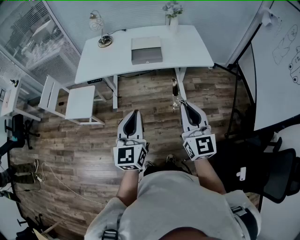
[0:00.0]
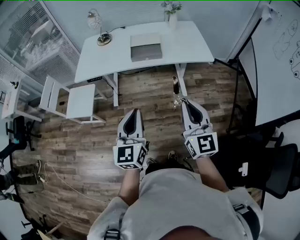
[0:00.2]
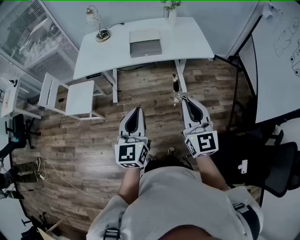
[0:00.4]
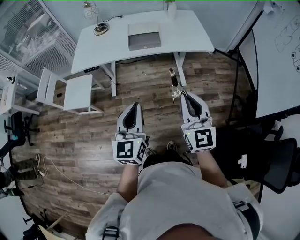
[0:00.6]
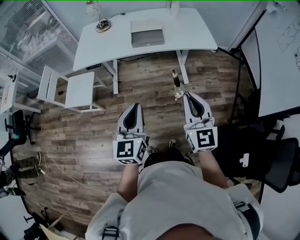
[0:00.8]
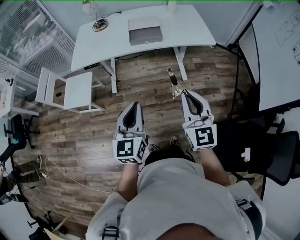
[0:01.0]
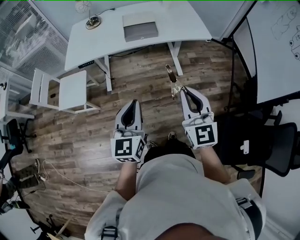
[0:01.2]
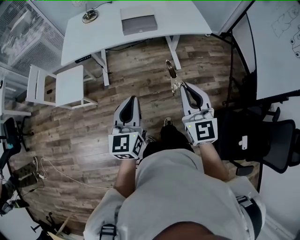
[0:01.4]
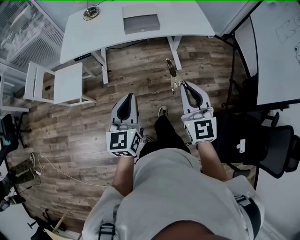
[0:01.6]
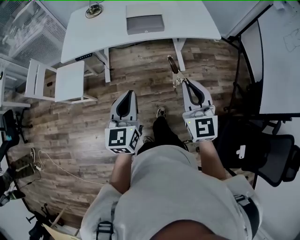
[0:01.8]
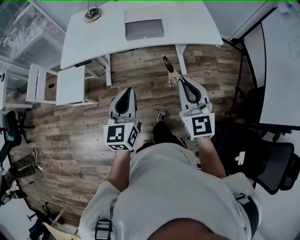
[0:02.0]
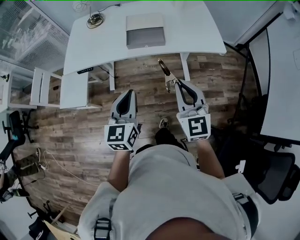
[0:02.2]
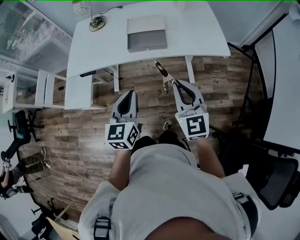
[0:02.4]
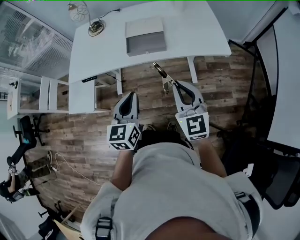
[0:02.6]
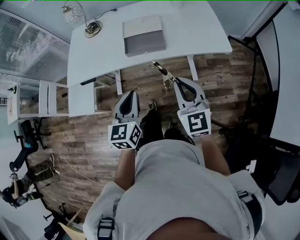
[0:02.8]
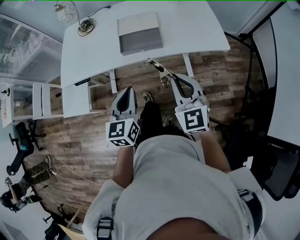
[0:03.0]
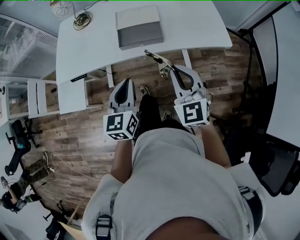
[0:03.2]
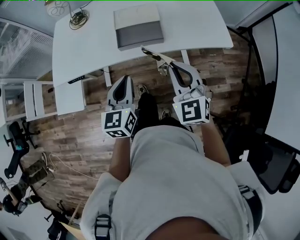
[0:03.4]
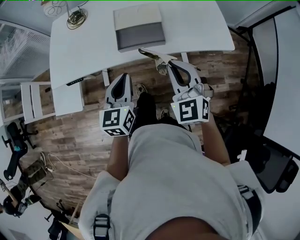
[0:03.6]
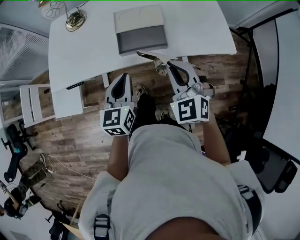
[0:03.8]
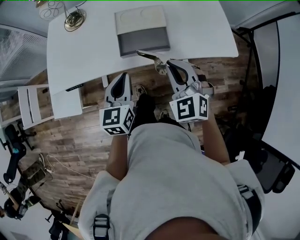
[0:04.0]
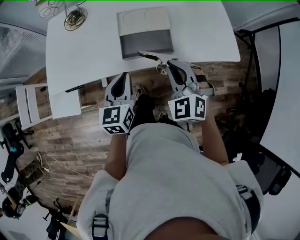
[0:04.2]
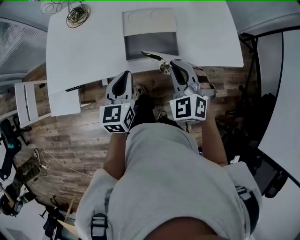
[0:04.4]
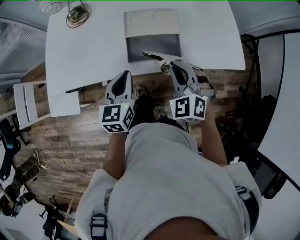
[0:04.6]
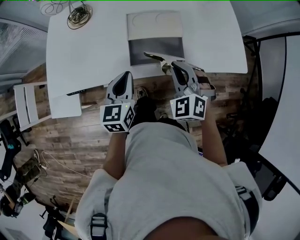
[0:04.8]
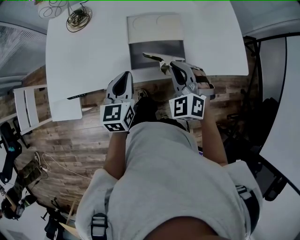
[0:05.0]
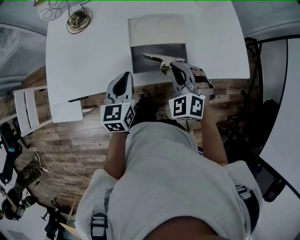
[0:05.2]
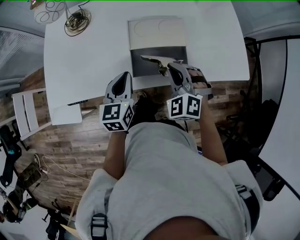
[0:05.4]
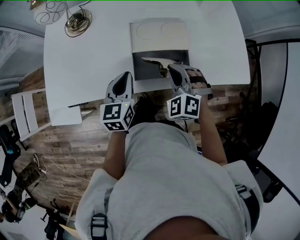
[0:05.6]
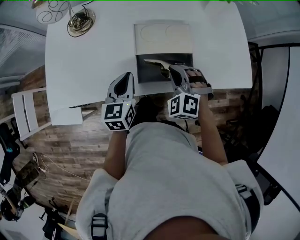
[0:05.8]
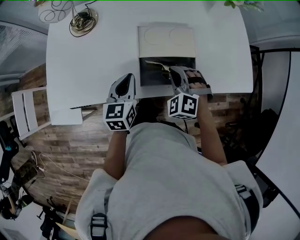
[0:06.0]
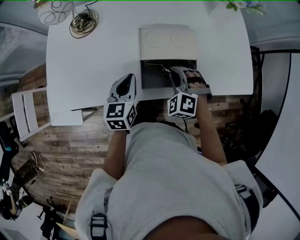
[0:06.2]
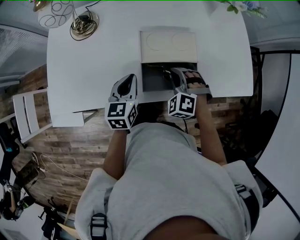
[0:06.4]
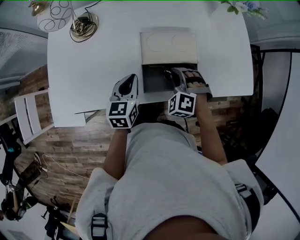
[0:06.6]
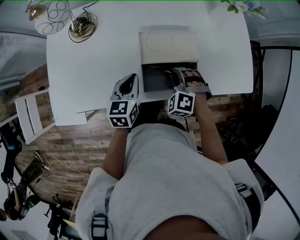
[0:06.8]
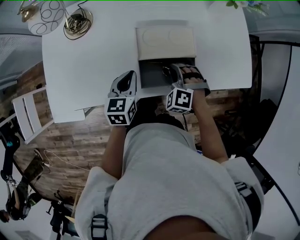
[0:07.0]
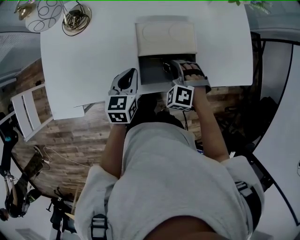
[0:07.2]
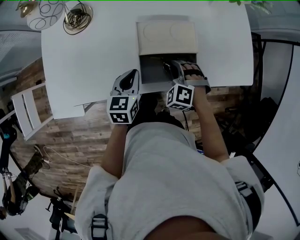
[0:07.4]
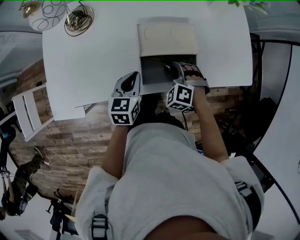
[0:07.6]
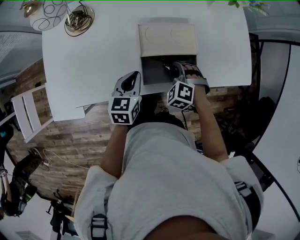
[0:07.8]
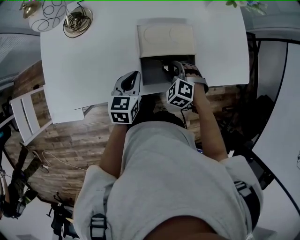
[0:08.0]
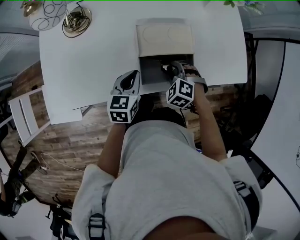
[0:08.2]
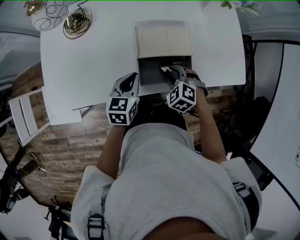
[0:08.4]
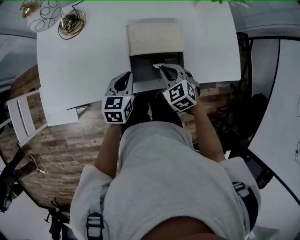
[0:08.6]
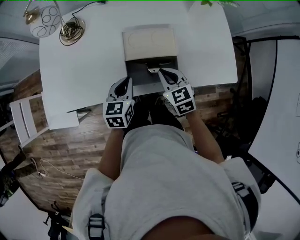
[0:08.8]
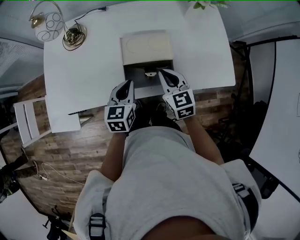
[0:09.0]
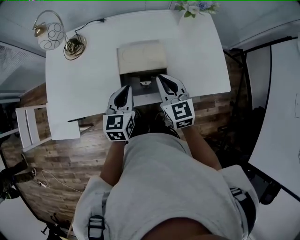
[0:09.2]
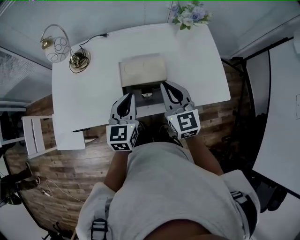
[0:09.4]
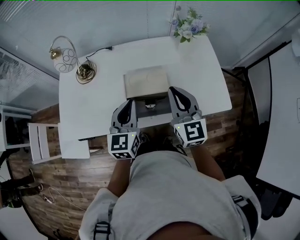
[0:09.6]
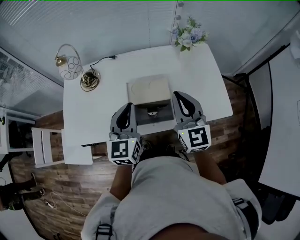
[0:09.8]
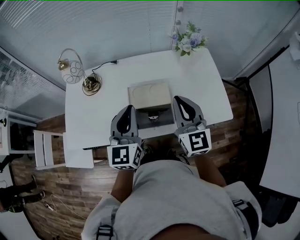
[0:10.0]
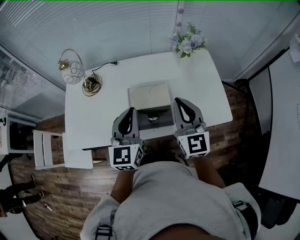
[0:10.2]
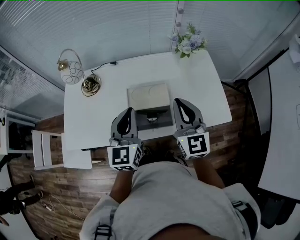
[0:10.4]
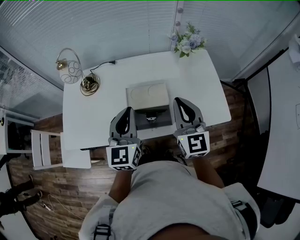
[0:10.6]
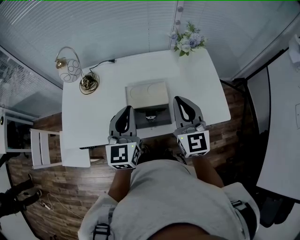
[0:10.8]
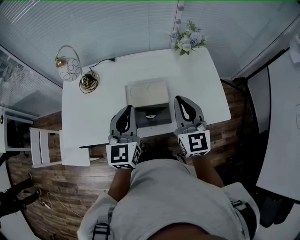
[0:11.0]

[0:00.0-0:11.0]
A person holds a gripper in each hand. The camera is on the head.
0.0 to 1.6 s: The left gripper heads downward and to the left, covering roughly 10 cm. The right gripper shifts about 10 cm to the left and downward.
1.6 to 3.2 s: Both grippers travel together forward, approximately 30 cm.
3.2 to 4.8 s: The left gripper moves forward and downward, about 20 cm; the right gripper goes about 20 cm forward, downward and to the left, and turns by about 30 degrees.
4.8 to 6.2 s: The right gripper goes about 15 cm forward, downward and to the left; the left gripper travels forward and downward by roughly 10 cm.
6.2 to 7.8 s: There are only small adjustments of the grippers.
7.8 to 9.4 s: The left gripper shifts approximately 15 cm upward and to the right, and turns by roughly 20 degrees. The right gripper moves upward, some 25 cm, points its fingers approximately 50 degrees further upward, and opens, then closes again.
9.4 to 11.0 s: Both grippers move upward, roughly 10 cm.

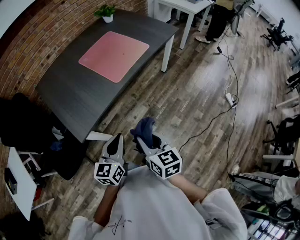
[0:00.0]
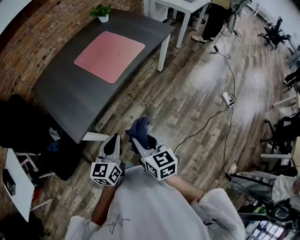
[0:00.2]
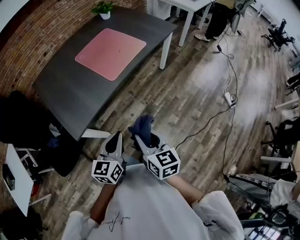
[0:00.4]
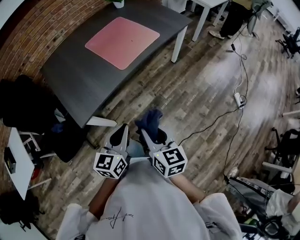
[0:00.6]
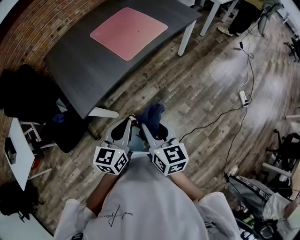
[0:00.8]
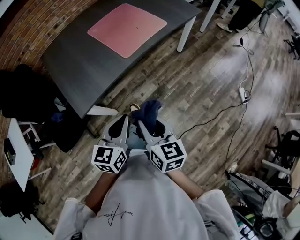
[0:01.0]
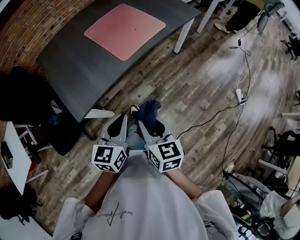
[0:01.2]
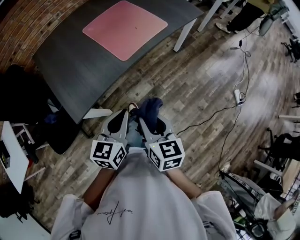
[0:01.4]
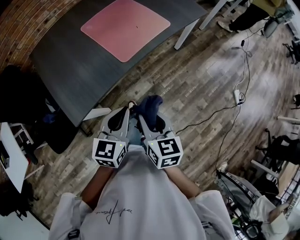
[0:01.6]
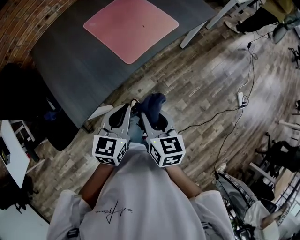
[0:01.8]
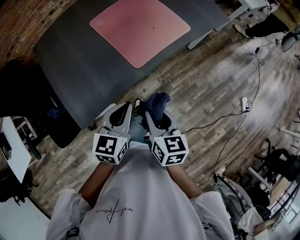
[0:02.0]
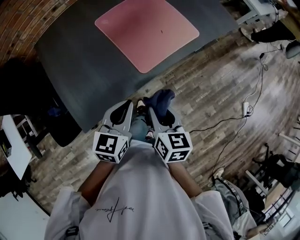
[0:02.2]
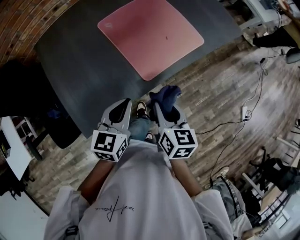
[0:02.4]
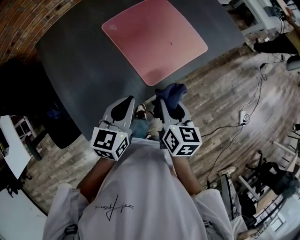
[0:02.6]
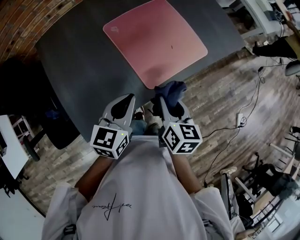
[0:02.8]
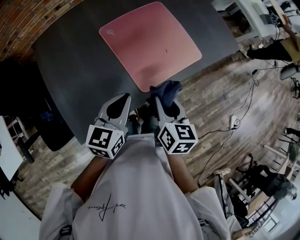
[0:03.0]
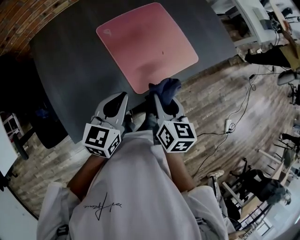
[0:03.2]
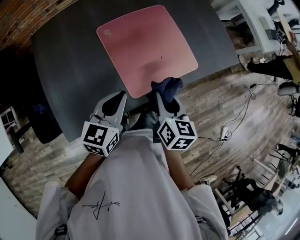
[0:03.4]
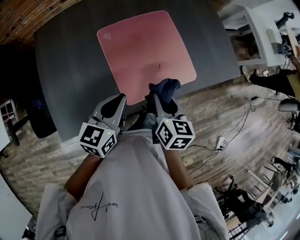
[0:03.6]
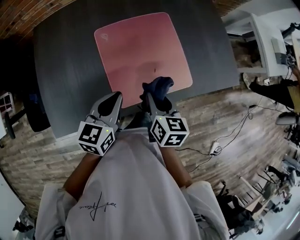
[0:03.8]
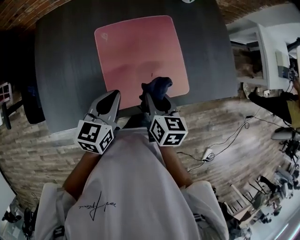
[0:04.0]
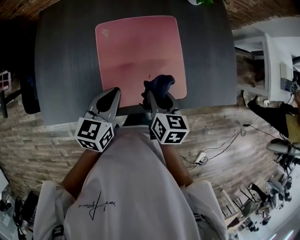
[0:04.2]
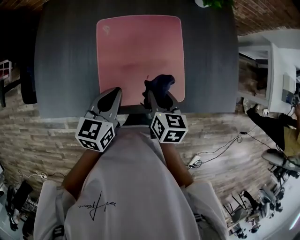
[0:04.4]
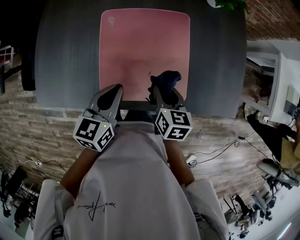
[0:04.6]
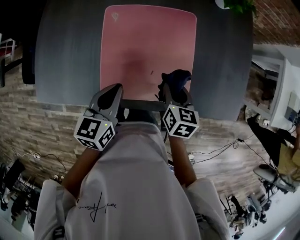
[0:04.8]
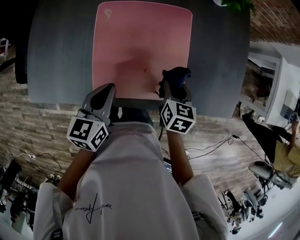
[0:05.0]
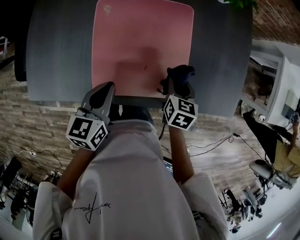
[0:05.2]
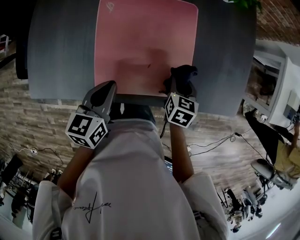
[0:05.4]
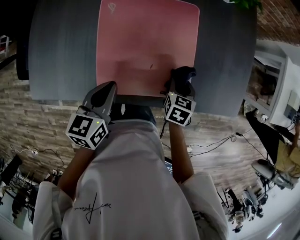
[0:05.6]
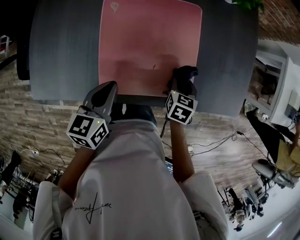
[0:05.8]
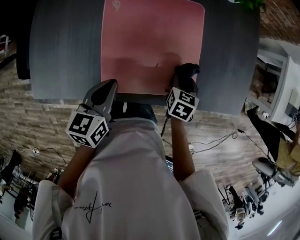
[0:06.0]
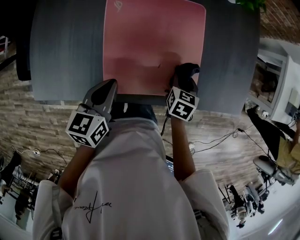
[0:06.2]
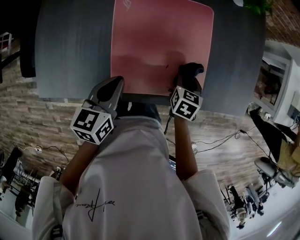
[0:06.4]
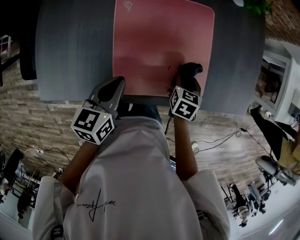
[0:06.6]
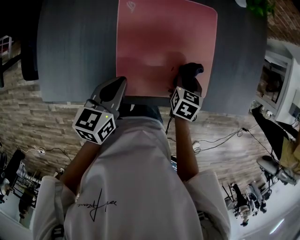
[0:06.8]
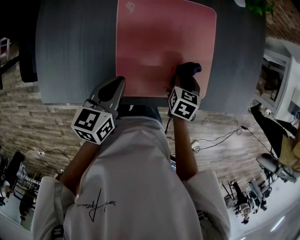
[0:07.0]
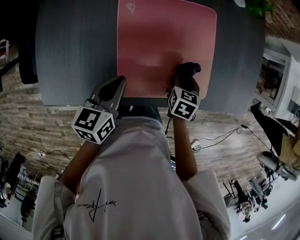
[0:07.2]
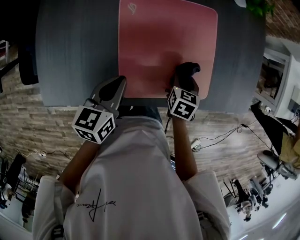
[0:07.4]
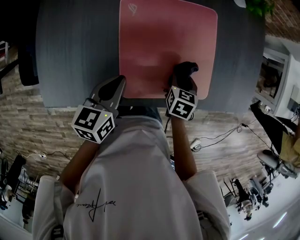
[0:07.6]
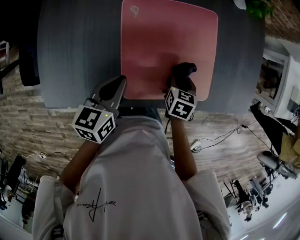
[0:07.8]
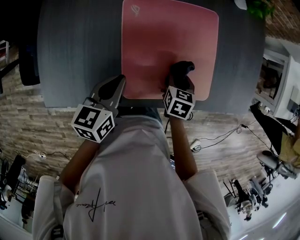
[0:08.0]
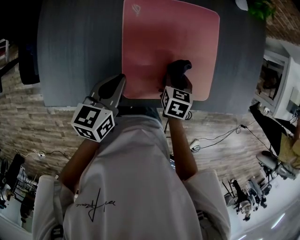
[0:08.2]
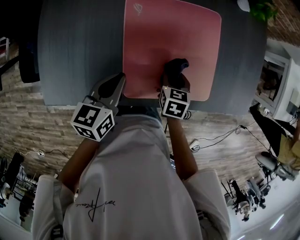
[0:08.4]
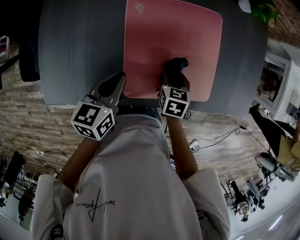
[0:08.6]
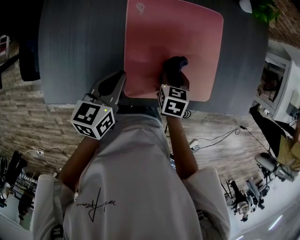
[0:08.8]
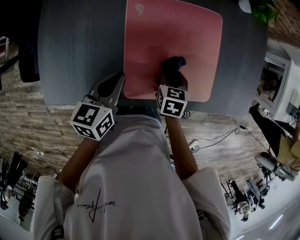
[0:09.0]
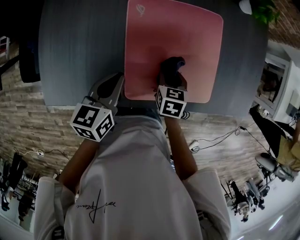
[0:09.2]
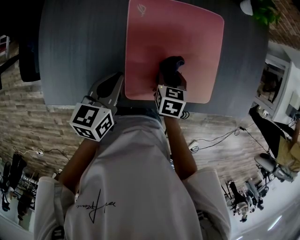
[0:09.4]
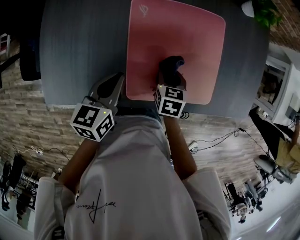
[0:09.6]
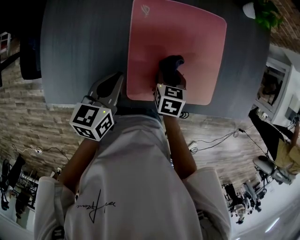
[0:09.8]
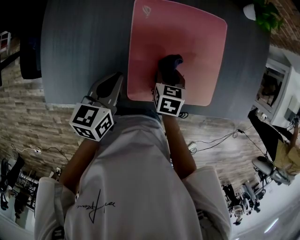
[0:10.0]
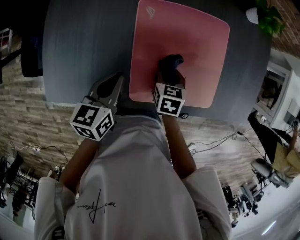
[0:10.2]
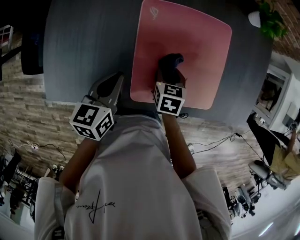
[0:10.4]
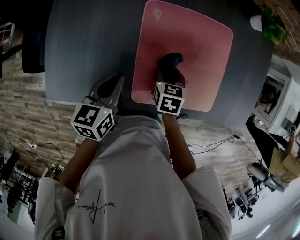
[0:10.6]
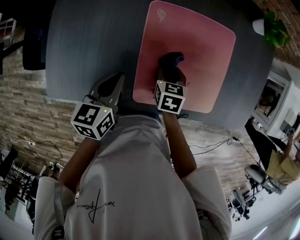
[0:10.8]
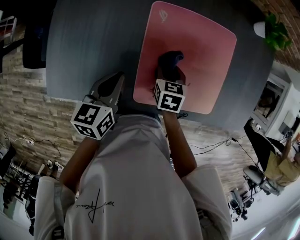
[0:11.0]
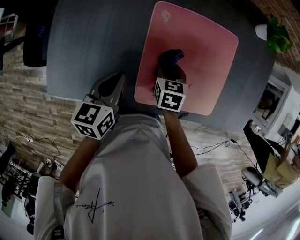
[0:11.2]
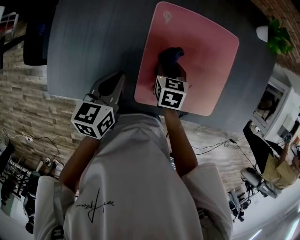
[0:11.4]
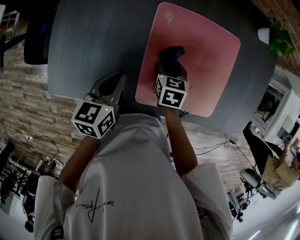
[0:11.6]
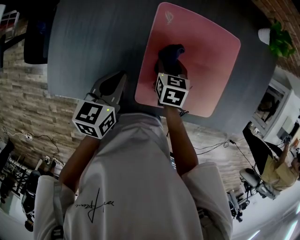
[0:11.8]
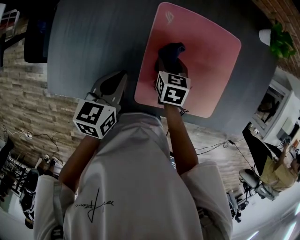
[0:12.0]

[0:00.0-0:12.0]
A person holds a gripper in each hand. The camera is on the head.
0.0 to 1.6 s: Both grippers move forward, roughly 10 cm.
1.6 to 3.0 s: The left gripper heads forward and to the left, covering roughly 25 cm, while the right gripper heads forward, covering roughly 25 cm.
3.0 to 4.4 s: The right gripper shifts by some 25 cm, and swivels roughly 30 degrees. Meanwhile the left gripper shifts by roughly 20 cm, and turns by about 30 degrees.
4.4 to 6.0 s: The left gripper ends up approximately 5 cm from where it was. Meanwhile the right gripper moves downward and to the right, about 15 cm, and changes its angle by about 20 degrees.
6.0 to 7.6 s: The two grippers go roughly 10 cm to the left.
7.6 to 9.0 s: The right gripper heads to the left, covering approximately 5 cm.
9.0 to 10.4 s: The right gripper shifts roughly 5 cm to the left.
10.4 to 12.0 s: The right gripper travels forward and to the left by about 5 cm.

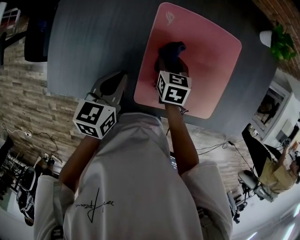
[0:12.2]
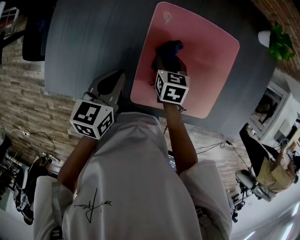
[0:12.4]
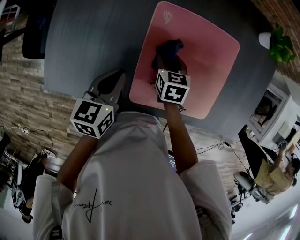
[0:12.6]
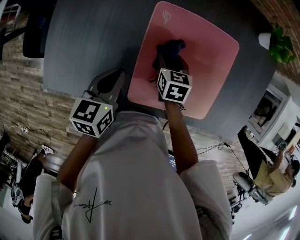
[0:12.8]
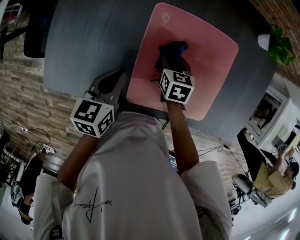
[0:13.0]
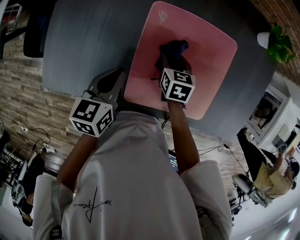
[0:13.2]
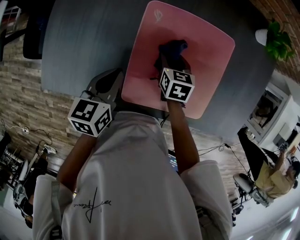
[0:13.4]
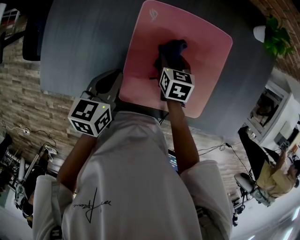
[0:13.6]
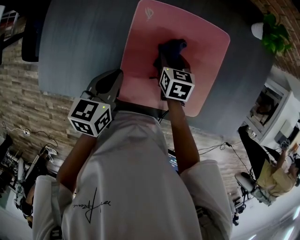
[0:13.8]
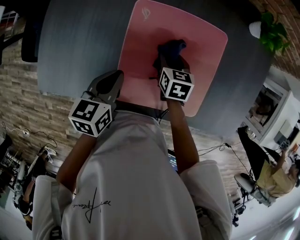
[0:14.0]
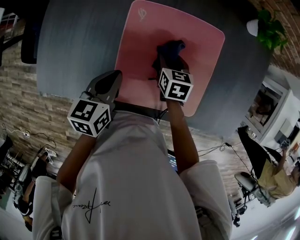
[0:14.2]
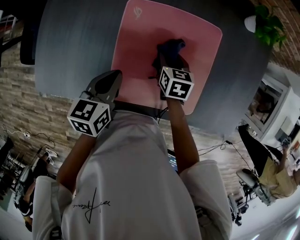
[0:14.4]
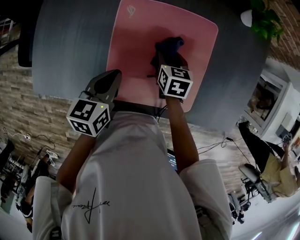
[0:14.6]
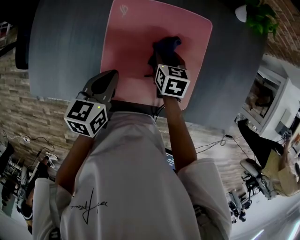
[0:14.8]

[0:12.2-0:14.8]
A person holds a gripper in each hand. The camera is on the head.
12.2 to 13.4 s: The right gripper goes about 5 cm to the right.
13.4 to 14.8 s: The grippers both shift to the right by roughly 10 cm.
